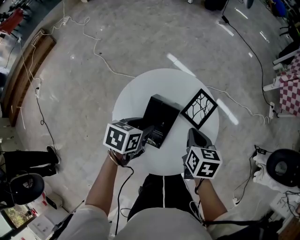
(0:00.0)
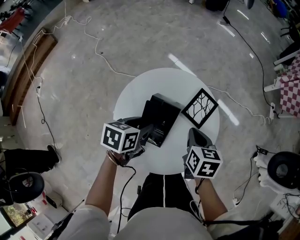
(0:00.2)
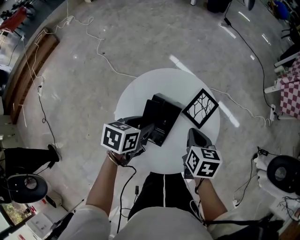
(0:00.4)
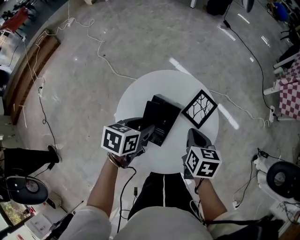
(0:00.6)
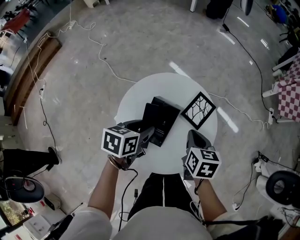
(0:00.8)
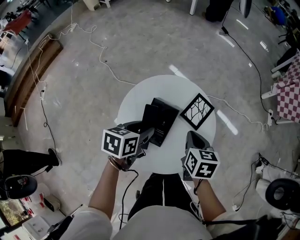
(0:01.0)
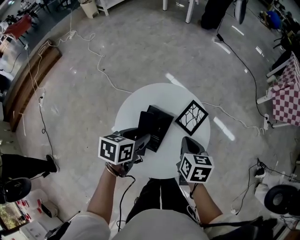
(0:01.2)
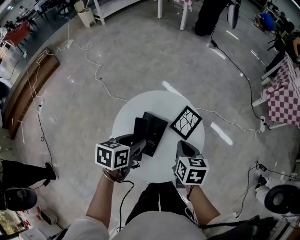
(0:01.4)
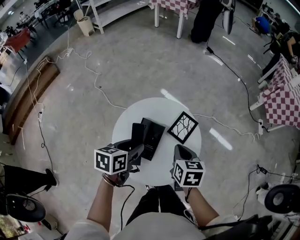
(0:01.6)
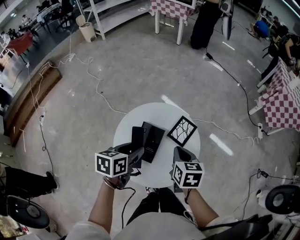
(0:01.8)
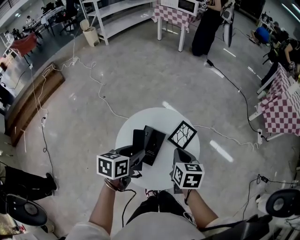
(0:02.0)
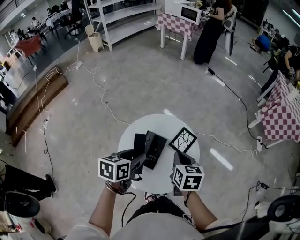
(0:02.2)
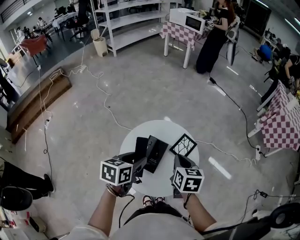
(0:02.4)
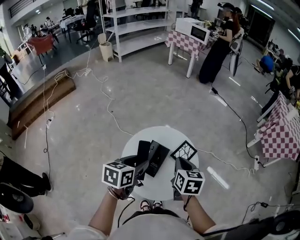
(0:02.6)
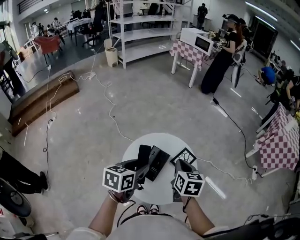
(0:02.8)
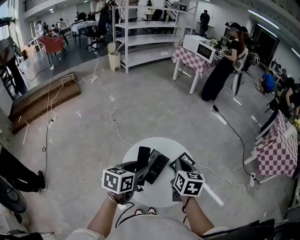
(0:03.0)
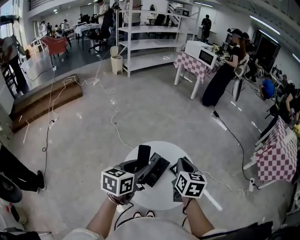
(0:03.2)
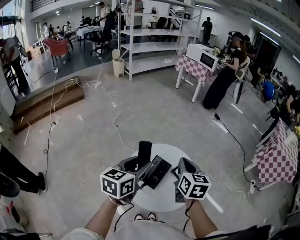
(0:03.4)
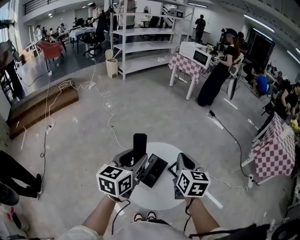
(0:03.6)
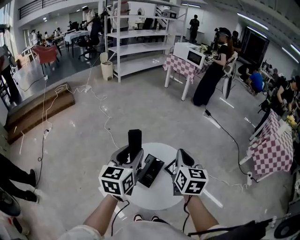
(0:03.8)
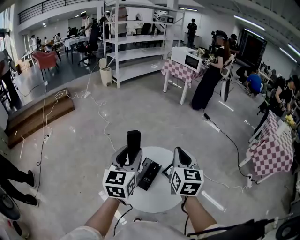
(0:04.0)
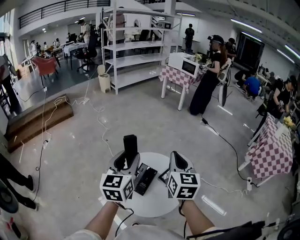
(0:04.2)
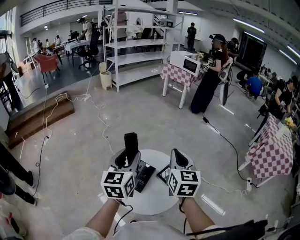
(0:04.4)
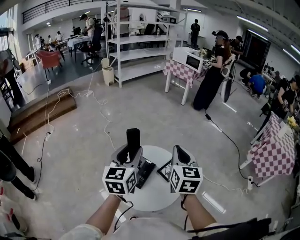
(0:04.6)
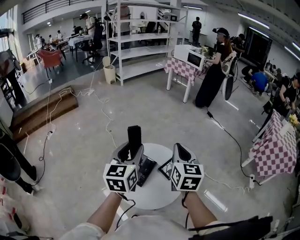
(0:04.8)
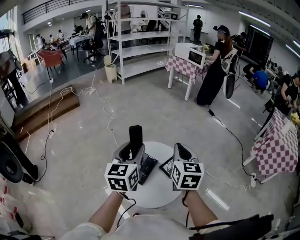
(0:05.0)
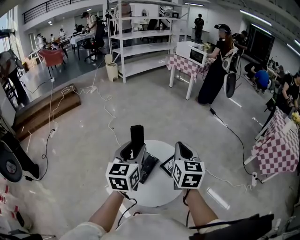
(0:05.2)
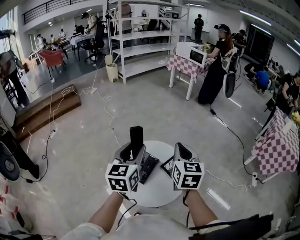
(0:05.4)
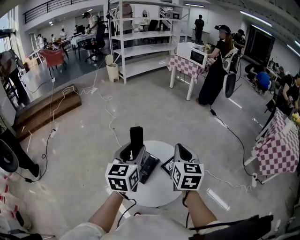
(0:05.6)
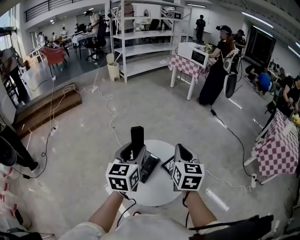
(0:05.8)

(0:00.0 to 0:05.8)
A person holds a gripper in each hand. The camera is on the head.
0:00.0 - 0:01.4: The left gripper is displaced upward by about 10 cm.
0:01.4 - 0:02.8: Both grippers travel together upward, roughly 10 cm.
0:02.8 - 0:04.4: Both grippers travel together upward, some 15 cm. The right gripper turns by about 30 degrees; the left gripper changes its angle by approximately 40 degrees.
0:04.4 - 0:05.8: The grippers stay close to where they were, moving slightly.

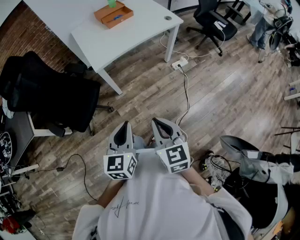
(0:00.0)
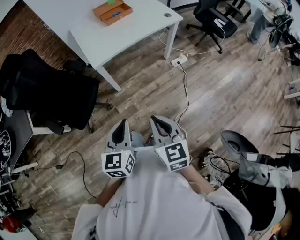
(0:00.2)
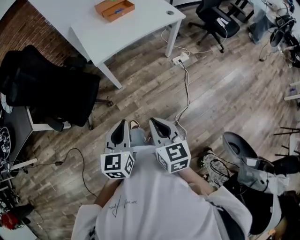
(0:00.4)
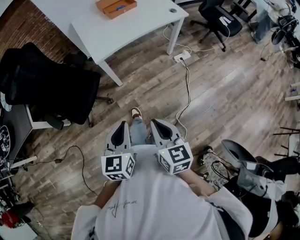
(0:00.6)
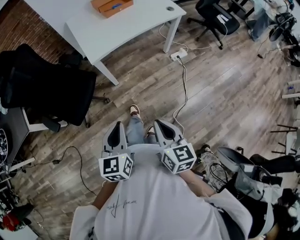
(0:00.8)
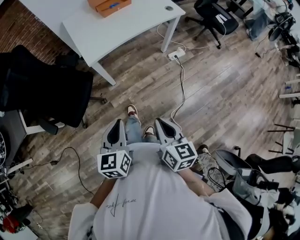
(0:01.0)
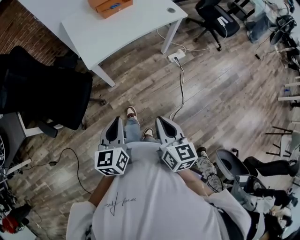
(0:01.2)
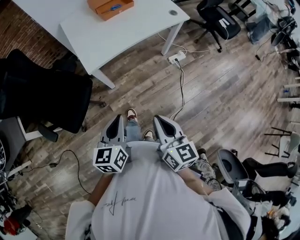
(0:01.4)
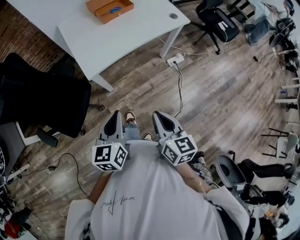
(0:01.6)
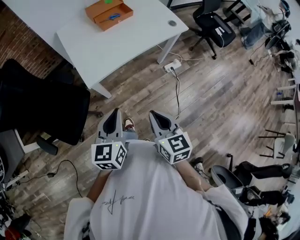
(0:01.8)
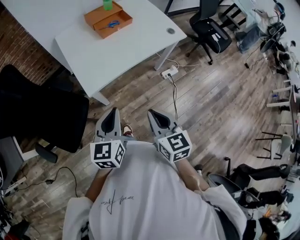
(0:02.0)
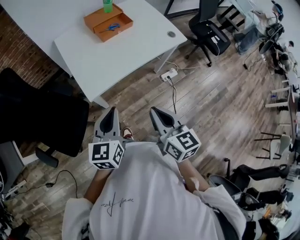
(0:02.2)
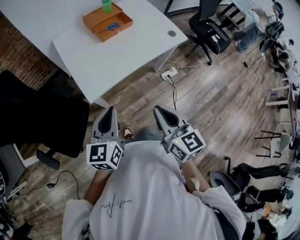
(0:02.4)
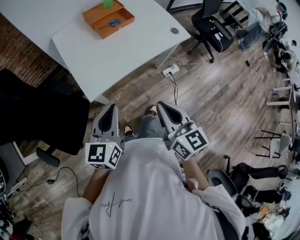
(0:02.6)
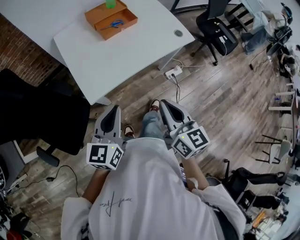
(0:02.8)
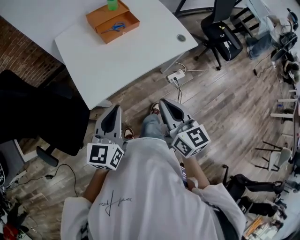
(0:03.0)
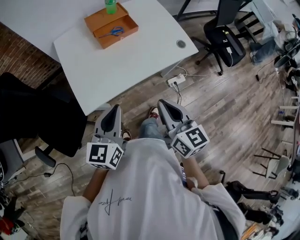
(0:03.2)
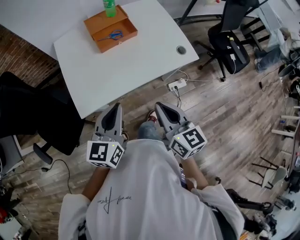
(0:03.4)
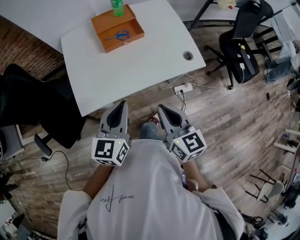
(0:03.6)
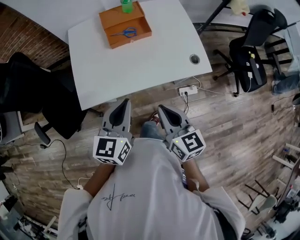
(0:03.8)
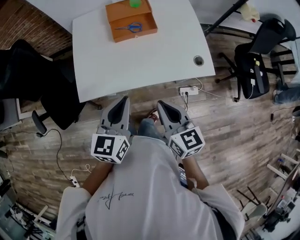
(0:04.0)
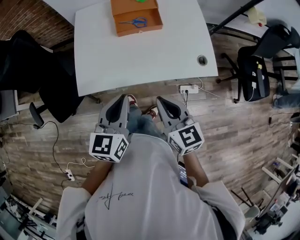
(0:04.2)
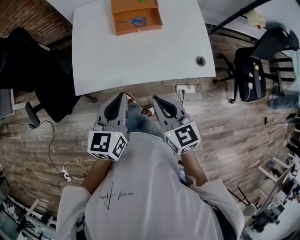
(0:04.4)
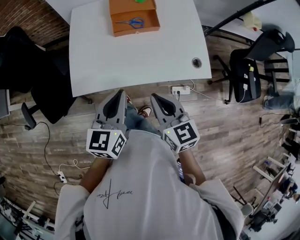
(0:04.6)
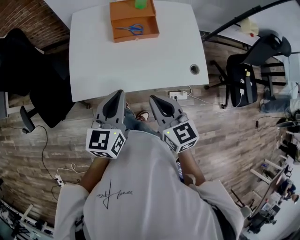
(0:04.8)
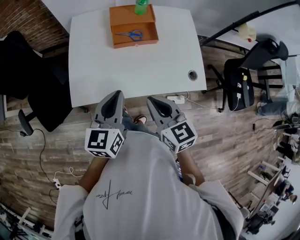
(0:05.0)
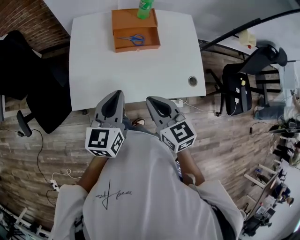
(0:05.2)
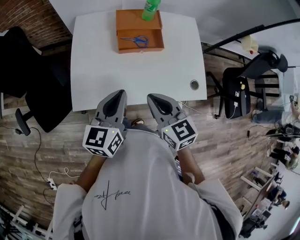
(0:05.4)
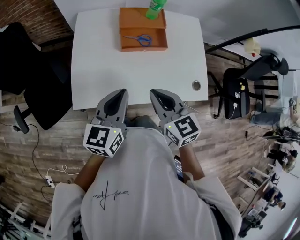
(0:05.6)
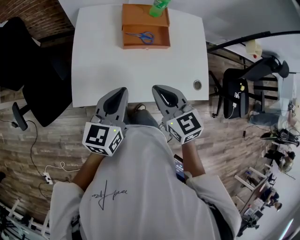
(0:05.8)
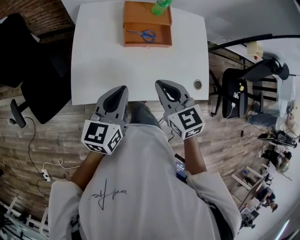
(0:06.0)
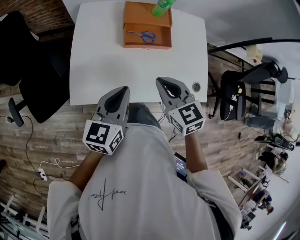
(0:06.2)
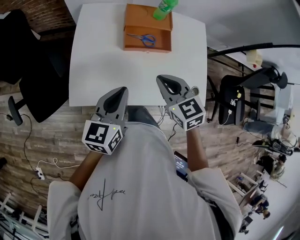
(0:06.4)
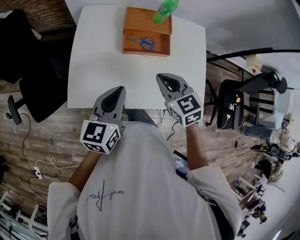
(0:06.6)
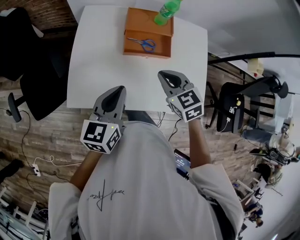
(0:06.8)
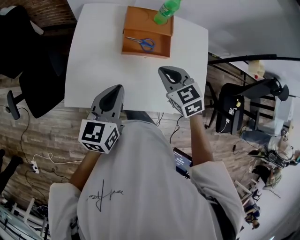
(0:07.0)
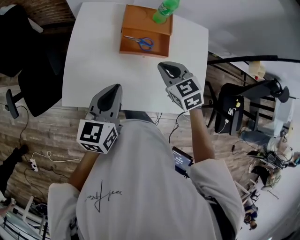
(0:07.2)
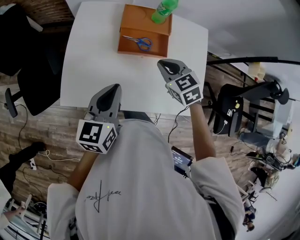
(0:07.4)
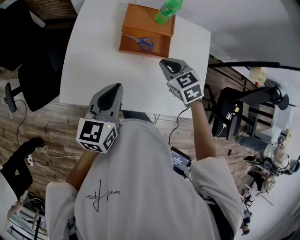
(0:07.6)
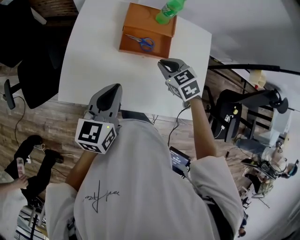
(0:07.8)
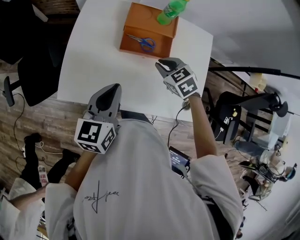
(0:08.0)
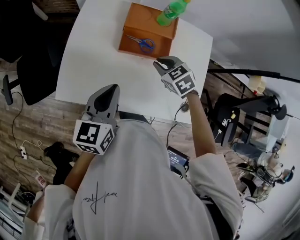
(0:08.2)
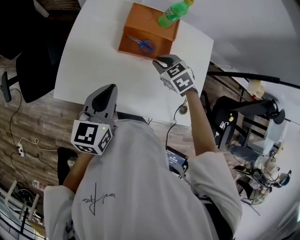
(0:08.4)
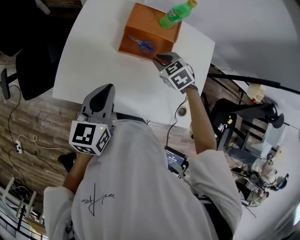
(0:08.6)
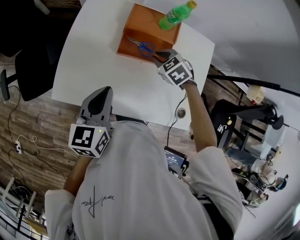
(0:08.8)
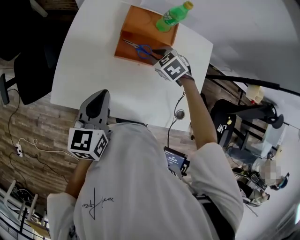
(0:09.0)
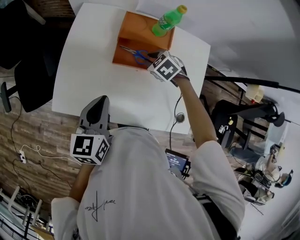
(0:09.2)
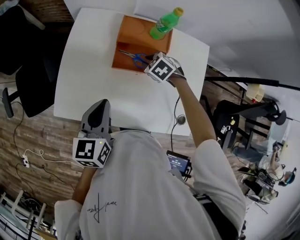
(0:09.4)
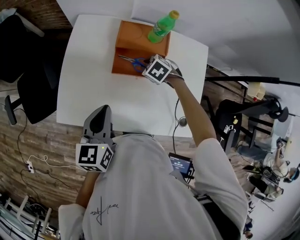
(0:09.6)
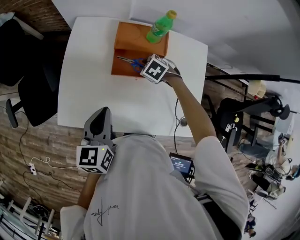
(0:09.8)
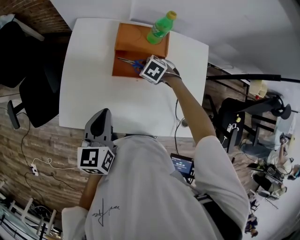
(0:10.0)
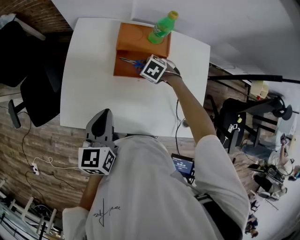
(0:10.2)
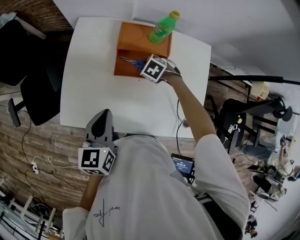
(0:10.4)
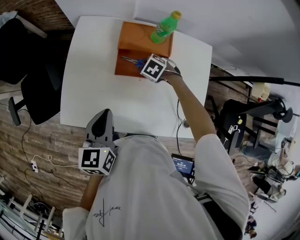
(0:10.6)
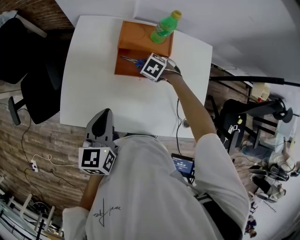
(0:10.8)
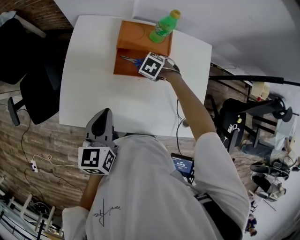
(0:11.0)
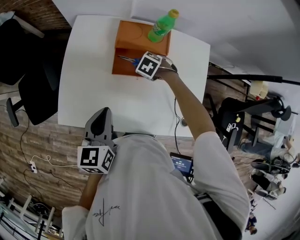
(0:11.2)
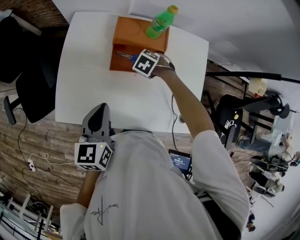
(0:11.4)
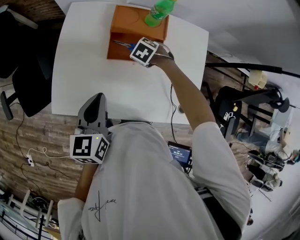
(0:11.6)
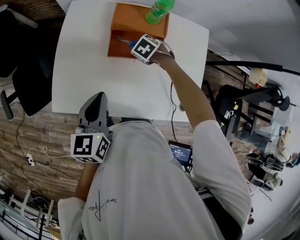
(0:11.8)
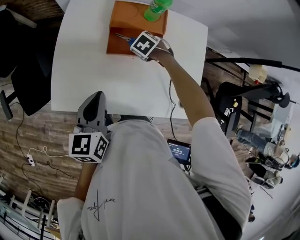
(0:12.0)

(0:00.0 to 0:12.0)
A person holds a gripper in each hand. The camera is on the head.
0:00.0 - 0:01.6: Both grippers move forward, some 20 cm.
0:01.6 - 0:03.0: The two grippers go about 20 cm forward.
0:03.0 - 0:04.4: The left gripper ends up about 15 cm from where it was, and changes its angle by approximately 20 degrees; the right gripper ends up roughly 15 cm from where it was, and turns by about 30 degrees.
0:04.4 - 0:06.0: The grippers both shift forward by some 15 cm.
0:06.0 - 0:07.6: The right gripper heads forward, to the right and downward, covering approximately 20 cm, and swivels approximately 20 degrees. Meanwhile the left gripper is displaced forward by approximately 5 cm.
0:07.6 - 0:09.0: The right gripper shifts approximately 10 cm forward and downward, and swivels roughly 20 degrees.
0:09.0 - 0:10.4: The right gripper shifts roughly 5 cm downward.
0:10.4 - 0:12.0: There are only small adjustments of the grippers.

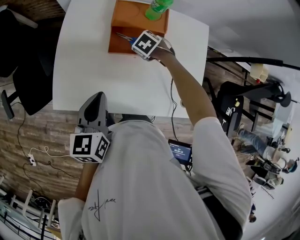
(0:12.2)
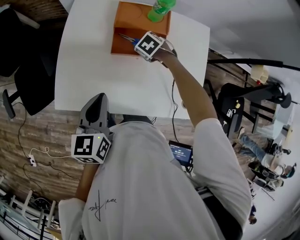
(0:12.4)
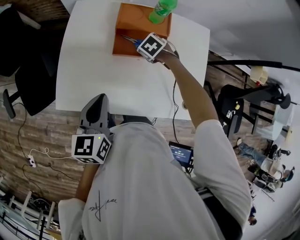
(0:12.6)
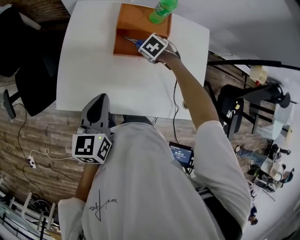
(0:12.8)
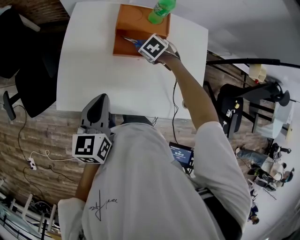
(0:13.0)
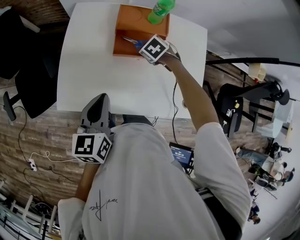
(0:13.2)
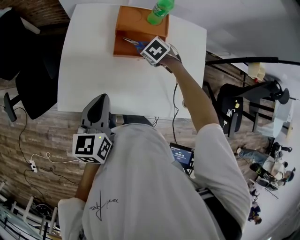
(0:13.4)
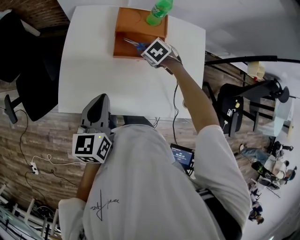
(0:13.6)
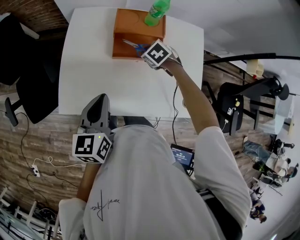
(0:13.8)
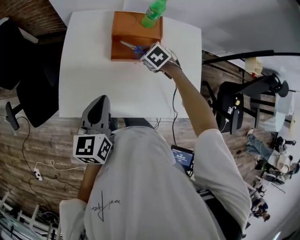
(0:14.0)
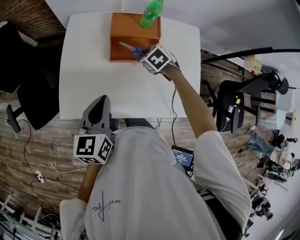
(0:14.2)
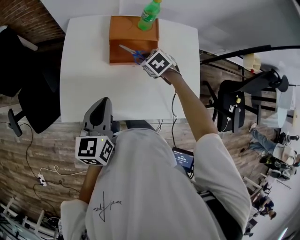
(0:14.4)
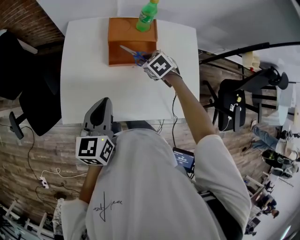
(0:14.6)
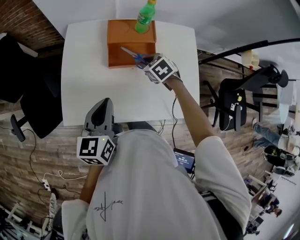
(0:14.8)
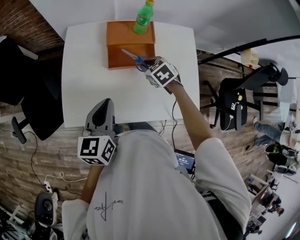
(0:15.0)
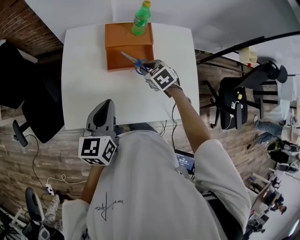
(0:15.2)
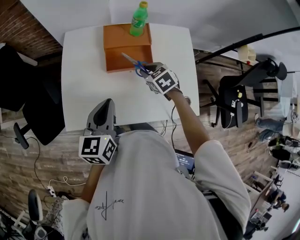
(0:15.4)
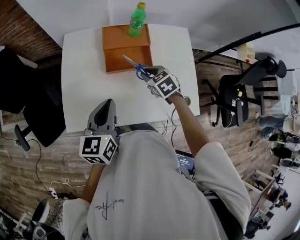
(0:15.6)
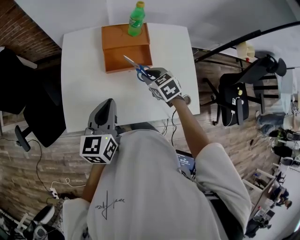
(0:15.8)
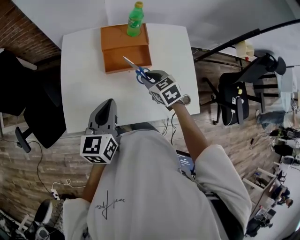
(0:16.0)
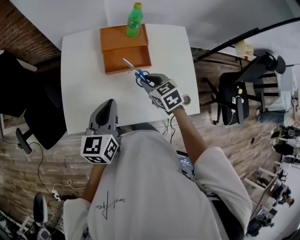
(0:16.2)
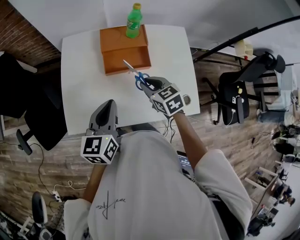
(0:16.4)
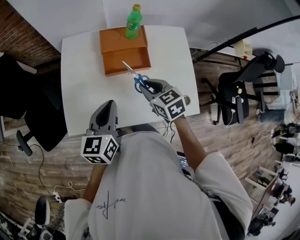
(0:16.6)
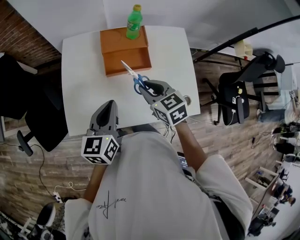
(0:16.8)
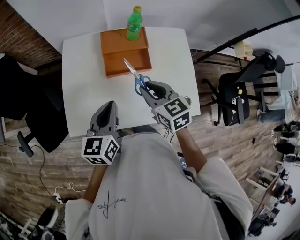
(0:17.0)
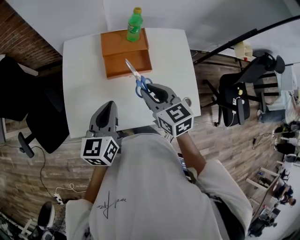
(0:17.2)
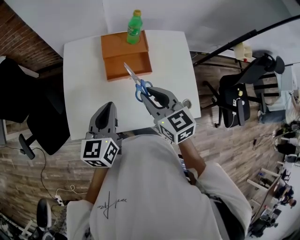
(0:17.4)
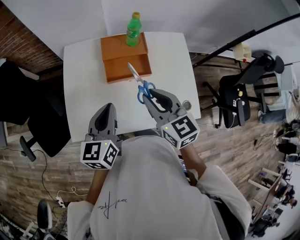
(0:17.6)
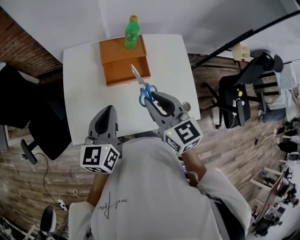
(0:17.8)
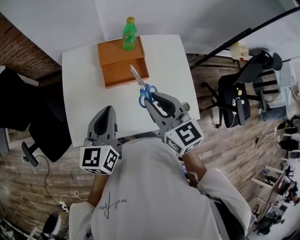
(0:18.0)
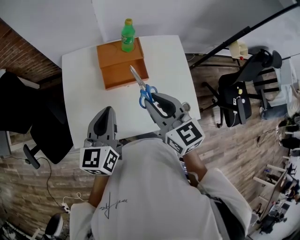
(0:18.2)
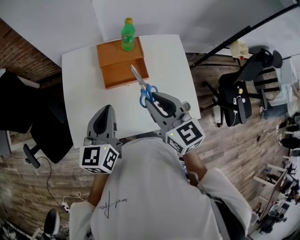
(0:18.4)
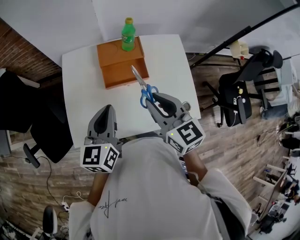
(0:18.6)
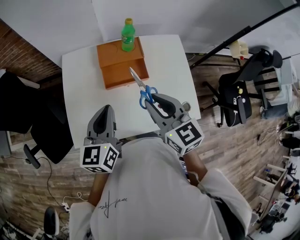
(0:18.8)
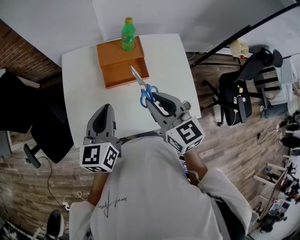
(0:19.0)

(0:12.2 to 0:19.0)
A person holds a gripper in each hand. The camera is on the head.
0:12.2 - 0:13.6: The grippers stay close to where they were, moving slightly.
0:13.6 - 0:15.0: The right gripper goes about 5 cm upward and backward.
0:15.0 - 0:16.2: The right gripper moves backward, roughly 5 cm.
0:16.2 - 0:17.6: The right gripper travels upward by about 15 cm, and swivels some 30 degrees.
0:17.6 - 0:19.0: The grippers stay close to where they were, moving slightly.
